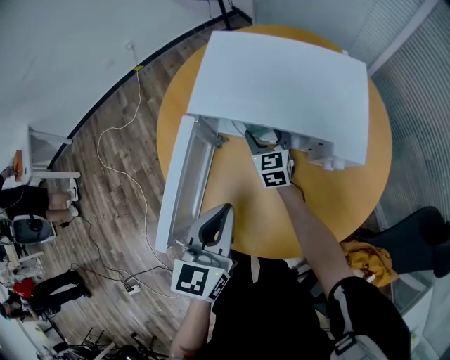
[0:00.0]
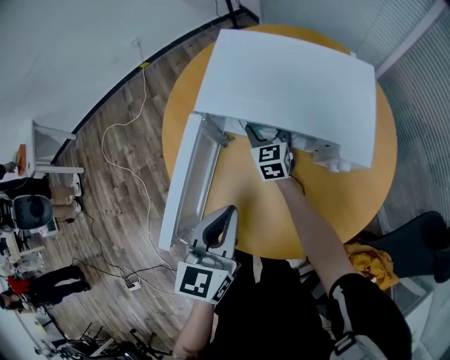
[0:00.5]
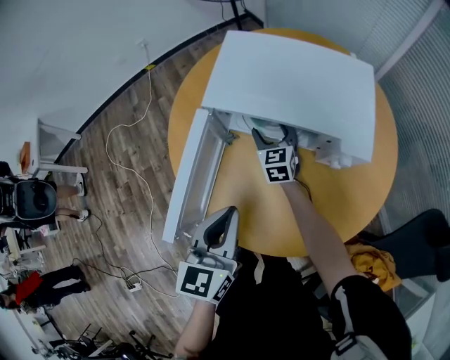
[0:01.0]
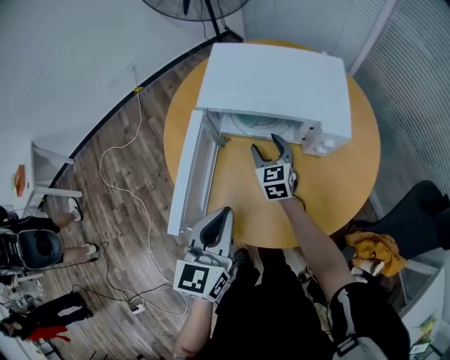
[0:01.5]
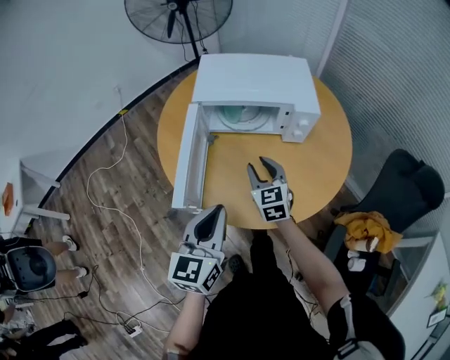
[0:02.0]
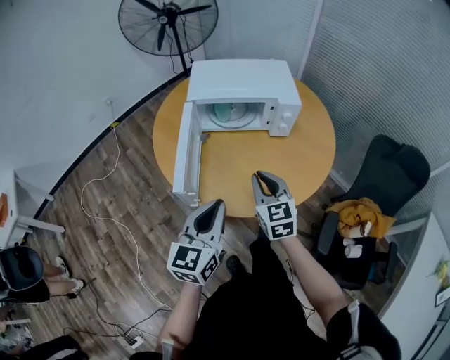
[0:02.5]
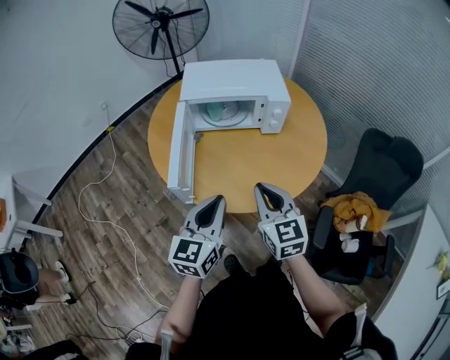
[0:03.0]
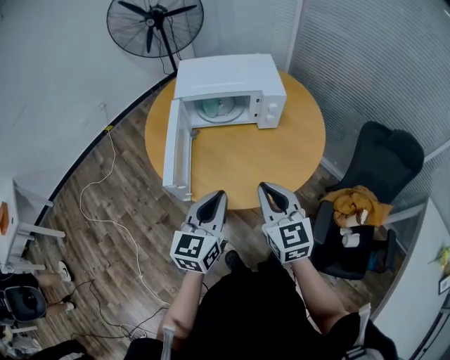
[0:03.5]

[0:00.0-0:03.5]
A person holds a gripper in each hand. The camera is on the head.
0:00.0 to 0:02.0: The right gripper is displaced backward and upward by approximately 25 cm, and closes; the left gripper moves backward, some 15 cm.
0:02.0 to 0:03.5: The left gripper moves backward, about 5 cm; the right gripper travels backward and upward by about 25 cm, and closes up.

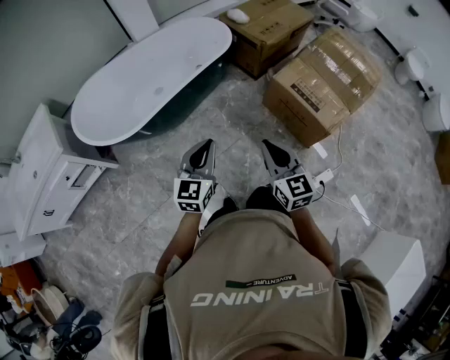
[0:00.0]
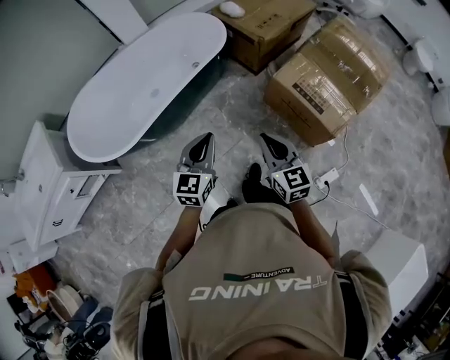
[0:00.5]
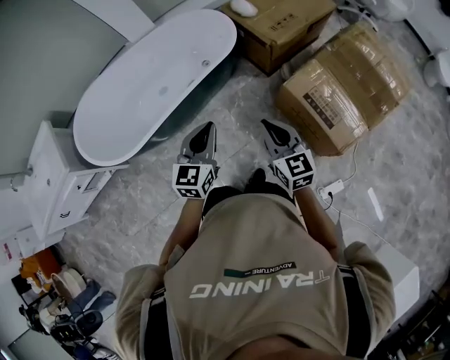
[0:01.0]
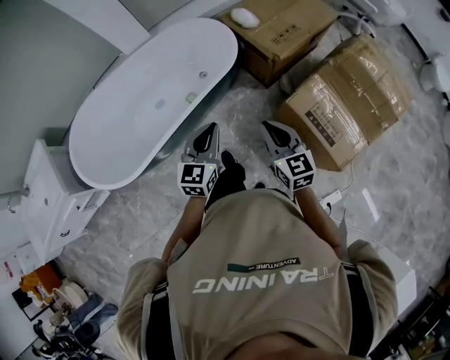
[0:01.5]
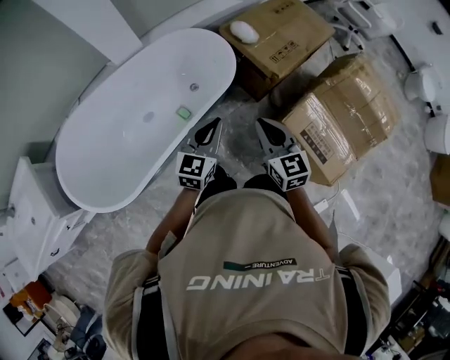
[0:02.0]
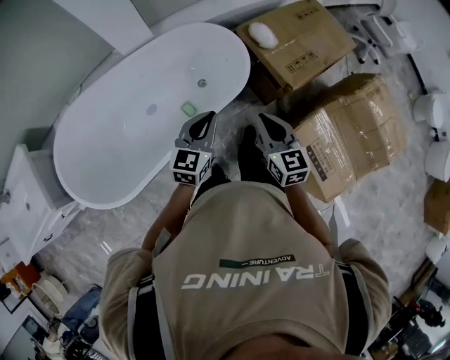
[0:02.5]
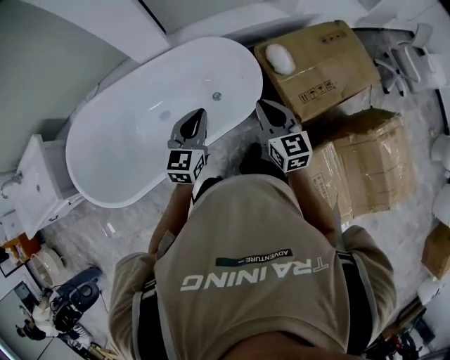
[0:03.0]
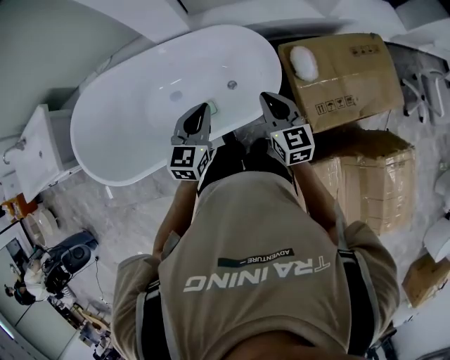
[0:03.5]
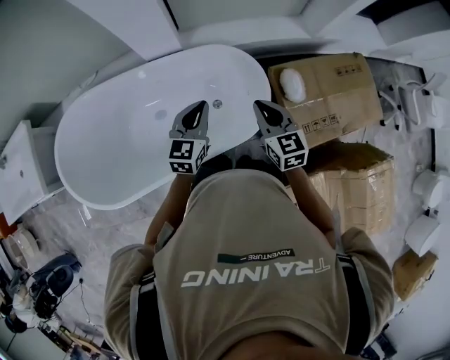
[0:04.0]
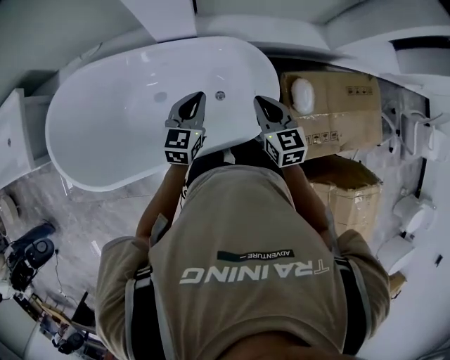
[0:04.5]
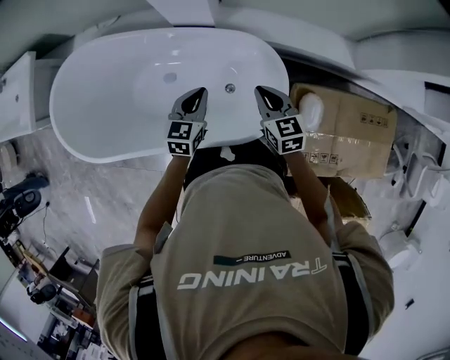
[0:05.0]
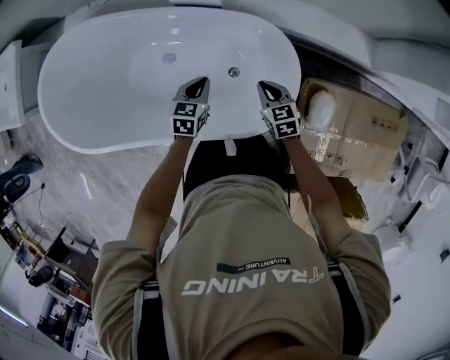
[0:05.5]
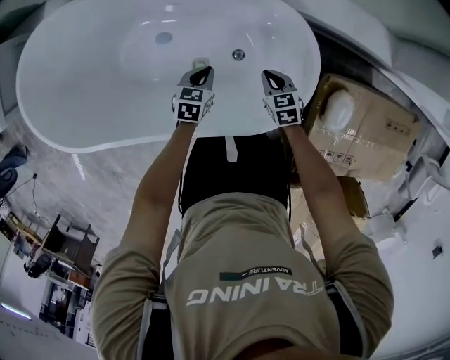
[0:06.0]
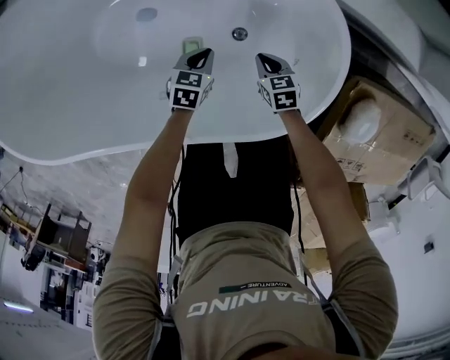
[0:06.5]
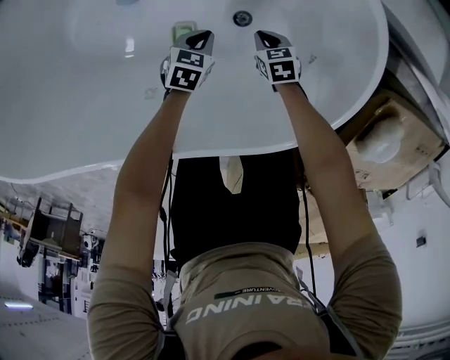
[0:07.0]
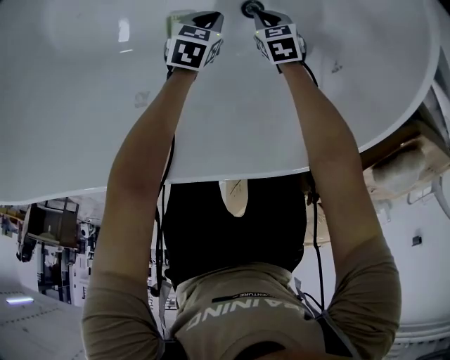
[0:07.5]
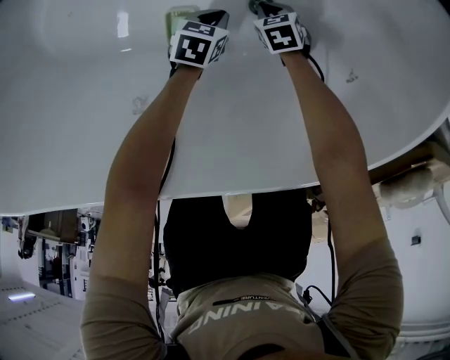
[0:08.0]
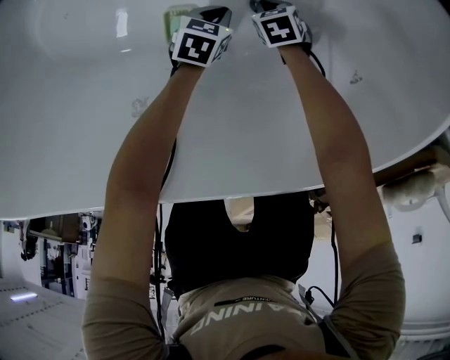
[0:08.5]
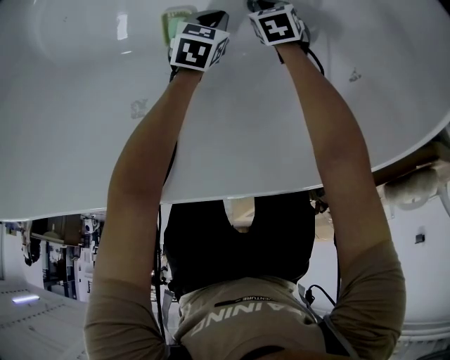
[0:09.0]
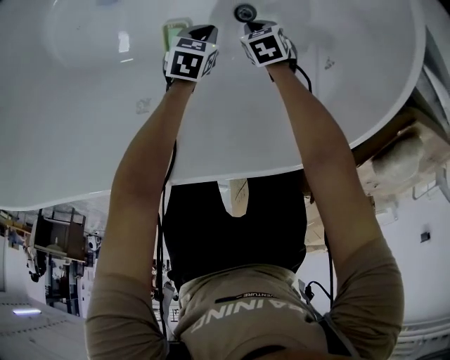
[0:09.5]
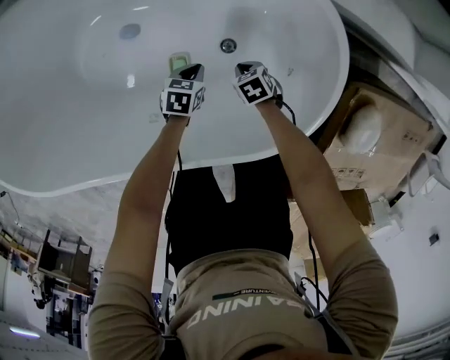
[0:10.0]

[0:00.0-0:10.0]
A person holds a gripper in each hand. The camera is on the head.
0:00.0 to 0:02.0: The two grippers travel together, forward, roughly 50 cm.
0:02.0 to 0:04.0: The right gripper changes place by about 40 cm, and swivels roughly 30 degrees; the left gripper moves some 35 cm, and changes its angle by about 30 degrees.
0:04.0 to 0:06.0: Both grippers move downward, approximately 35 cm. The left gripper tilts its fingers roughly 30 degrees downward. The right gripper swivels roughly 40 degrees.
0:06.0 to 0:08.0: The two grippers go some 50 cm downward. The right gripper rotates approximately 30 degrees, while the left gripper swivels approximately 20 degrees.
0:08.0 to 0:10.0: Both grippers move upward, about 25 cm.

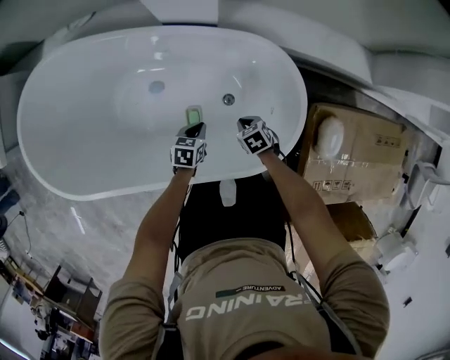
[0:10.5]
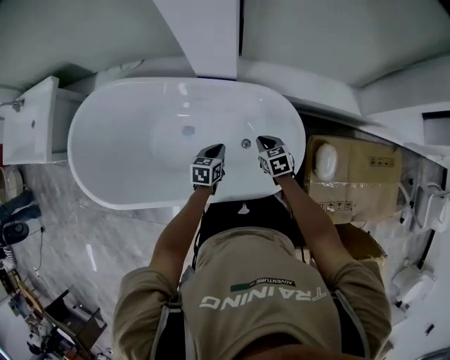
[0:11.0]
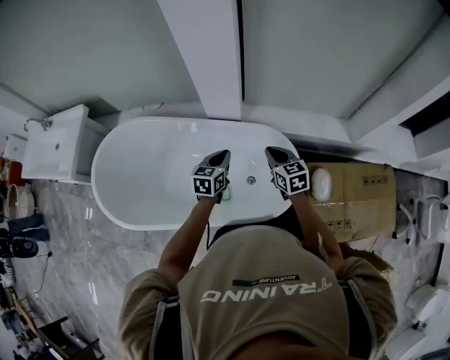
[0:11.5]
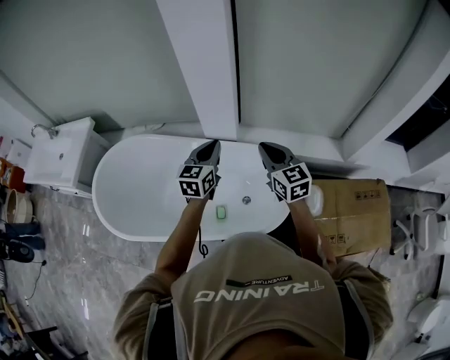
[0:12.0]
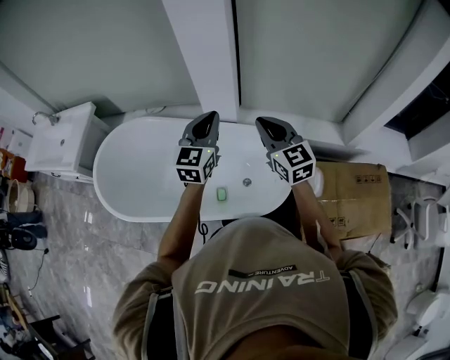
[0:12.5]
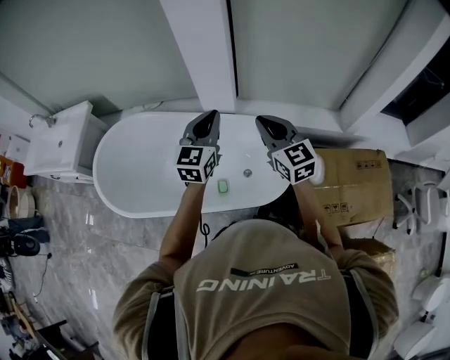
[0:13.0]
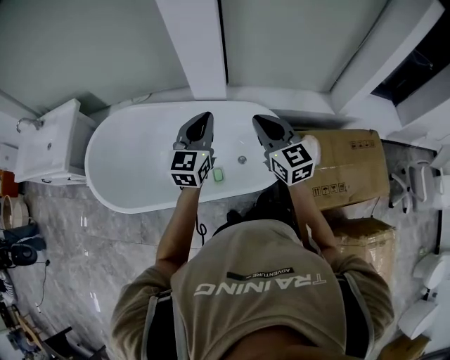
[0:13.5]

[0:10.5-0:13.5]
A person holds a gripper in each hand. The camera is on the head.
0:10.5 to 0:12.0: The grippers both shift upward by about 50 cm. The left gripper tilts its fingers some 40 degrees upward; the right gripper angles its fingers upward, by approximately 60 degrees.
0:12.0 to 0:13.5: Both grippers travel together backward, roughly 10 cm.

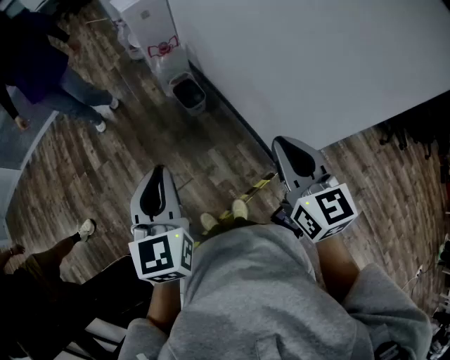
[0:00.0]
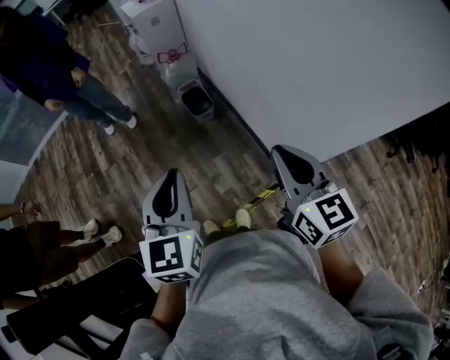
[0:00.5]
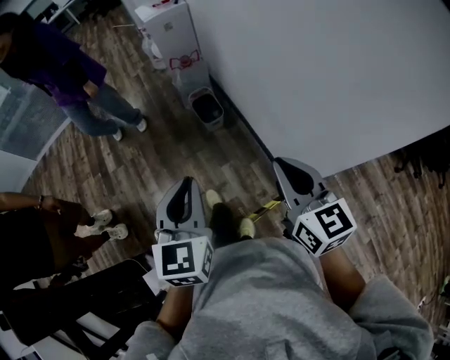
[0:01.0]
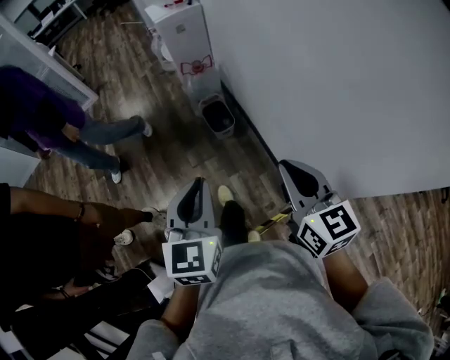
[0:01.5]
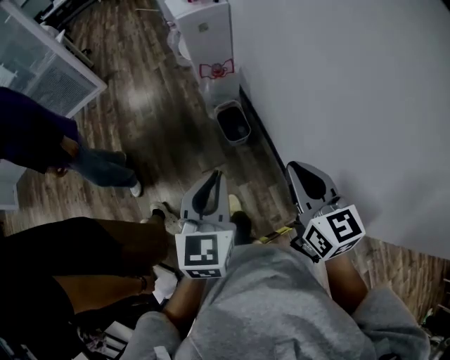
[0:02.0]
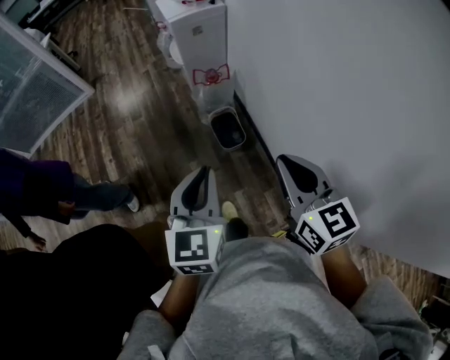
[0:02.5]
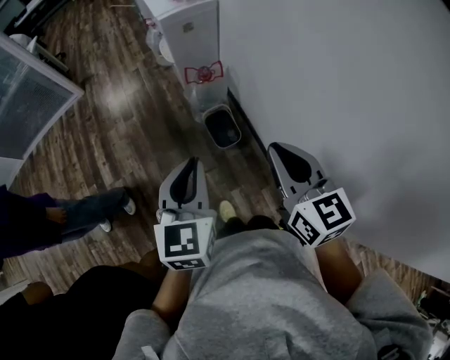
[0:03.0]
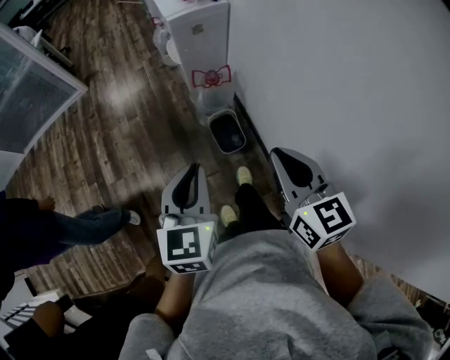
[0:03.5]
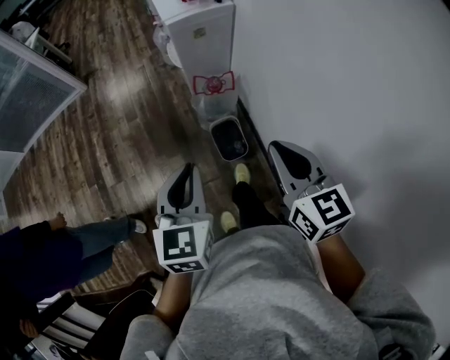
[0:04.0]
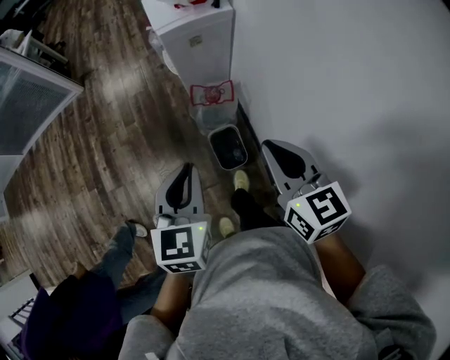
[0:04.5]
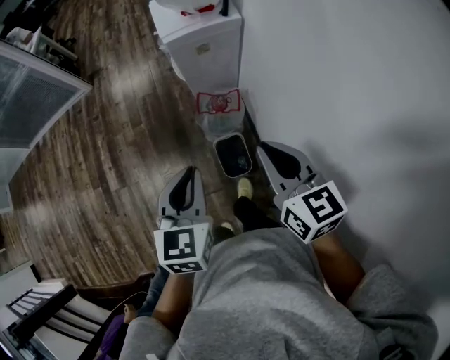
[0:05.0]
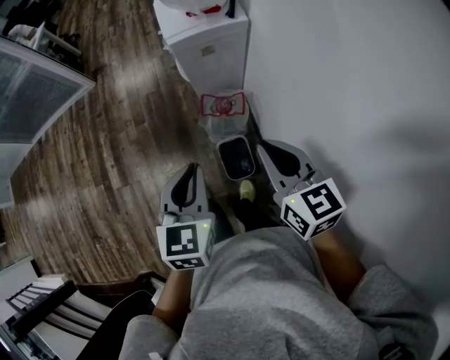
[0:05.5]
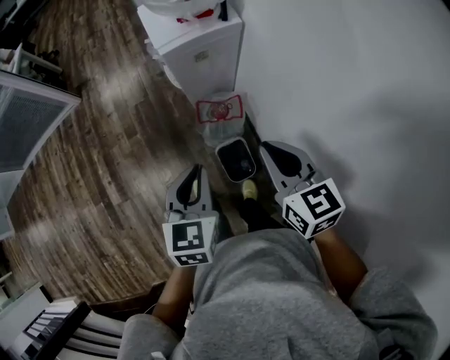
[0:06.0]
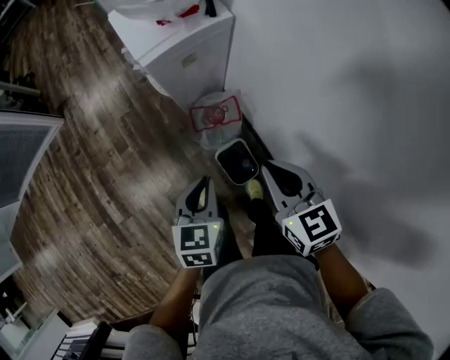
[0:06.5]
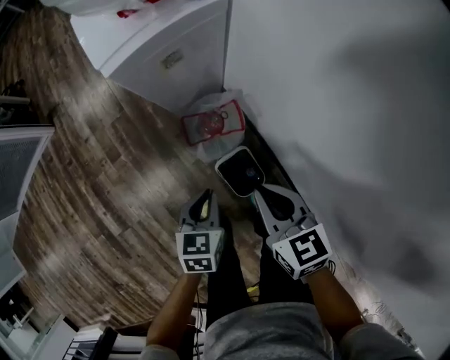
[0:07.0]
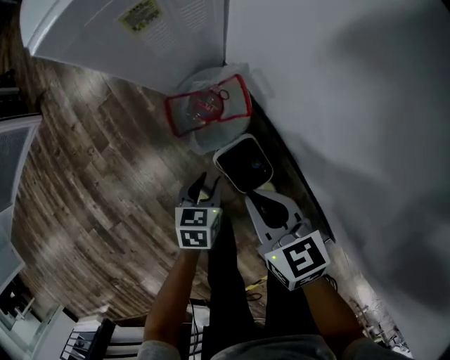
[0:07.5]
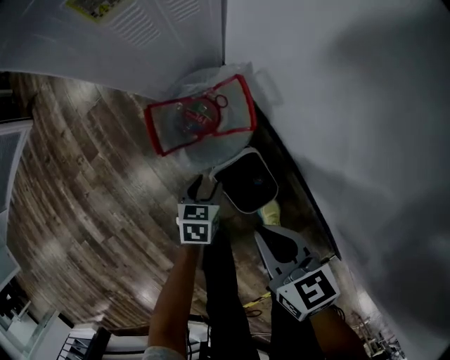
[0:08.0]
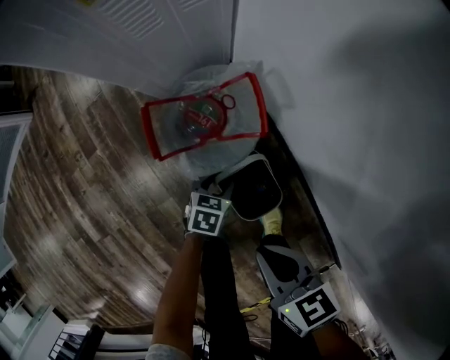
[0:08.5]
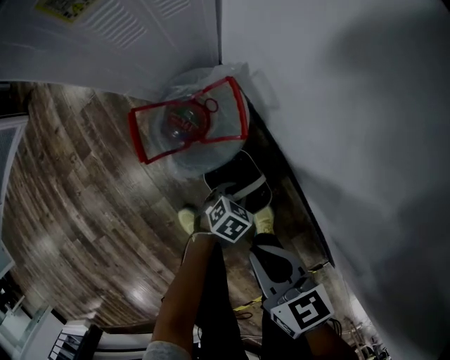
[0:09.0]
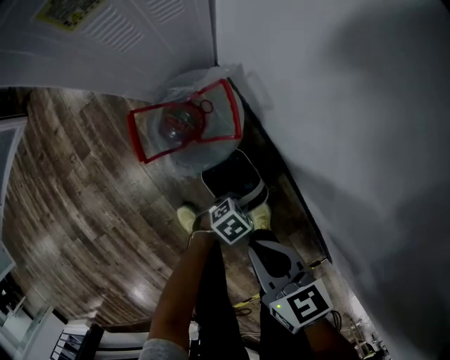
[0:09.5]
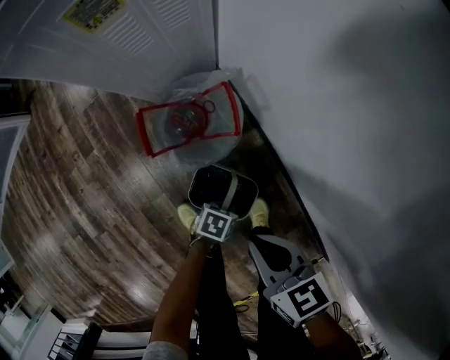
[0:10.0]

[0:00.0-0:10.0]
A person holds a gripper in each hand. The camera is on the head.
0:00.0 to 0:02.0: Both grippers travel together forward, roughly 20 cm.
0:02.0 to 0:04.0: The two grippers go about 25 cm forward.
0:04.0 to 0:06.0: The grippers both shift forward by approximately 20 cm.
0:06.0 to 0:08.0: The two grippers go approximately 50 cm downward. The right gripper turns by roughly 30 degrees, while the left gripper turns by some 30 degrees, and opens its fingers.
0:08.0 to 0:10.0: The left gripper ends up approximately 15 cm from where it was, changes its angle by approximately 30 degrees, and closes.
